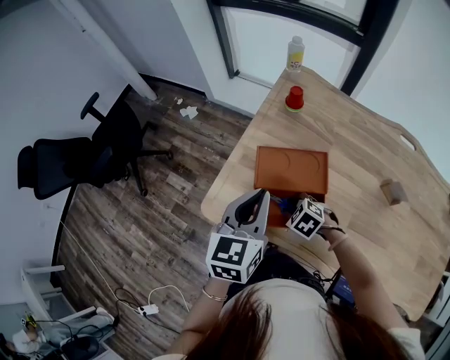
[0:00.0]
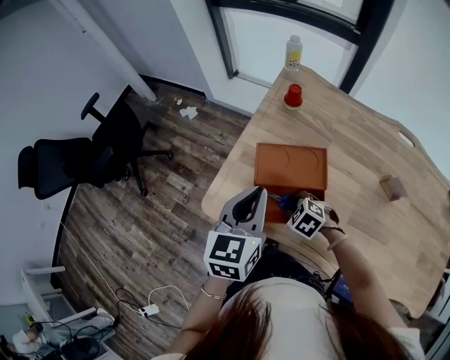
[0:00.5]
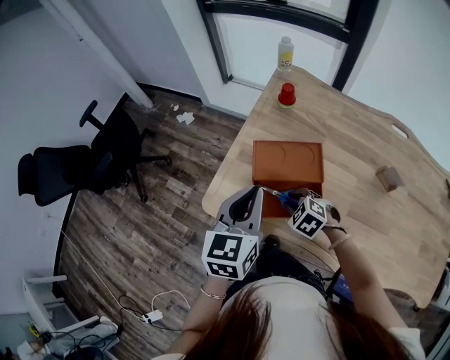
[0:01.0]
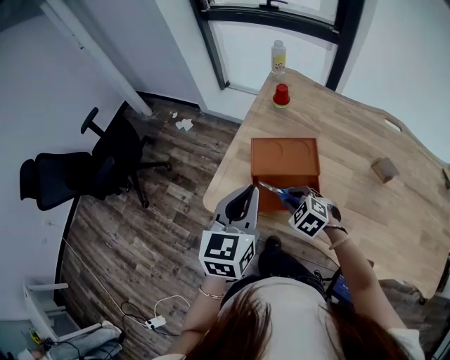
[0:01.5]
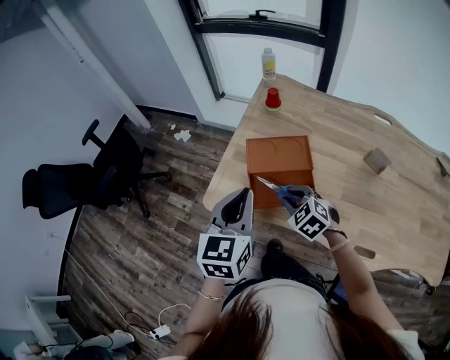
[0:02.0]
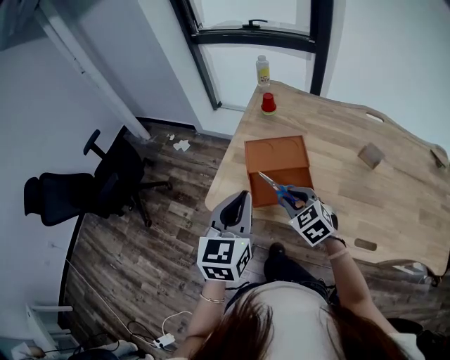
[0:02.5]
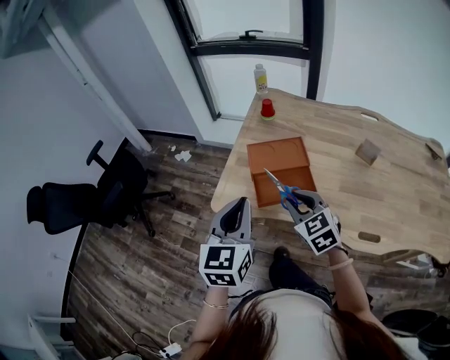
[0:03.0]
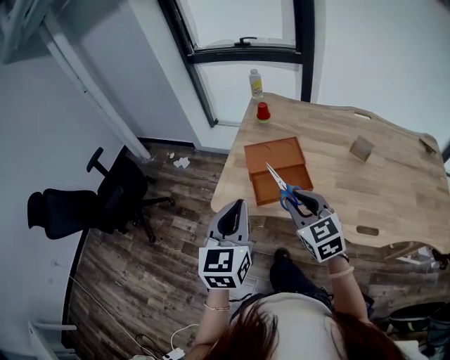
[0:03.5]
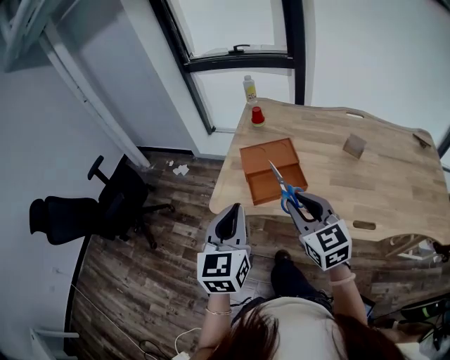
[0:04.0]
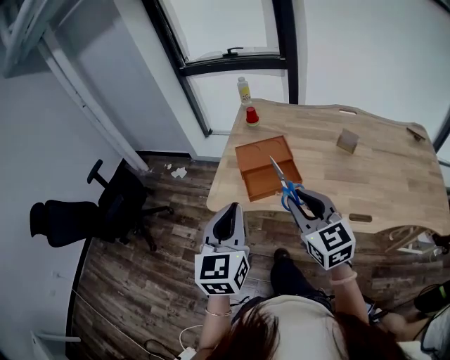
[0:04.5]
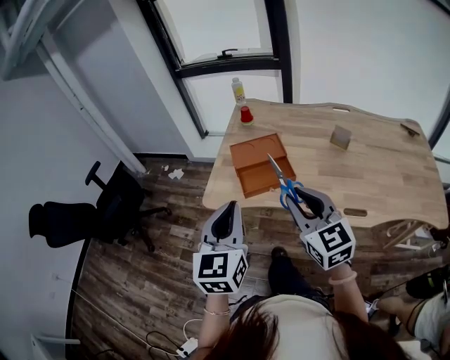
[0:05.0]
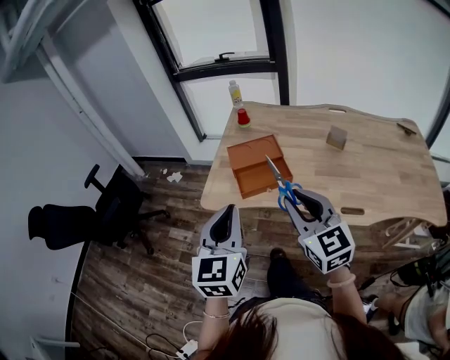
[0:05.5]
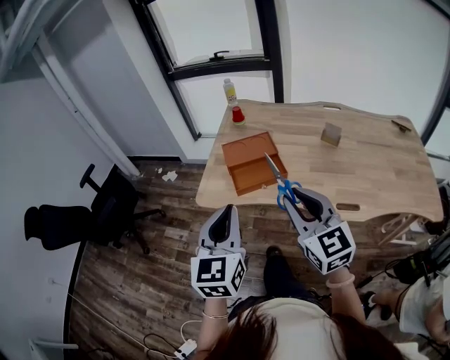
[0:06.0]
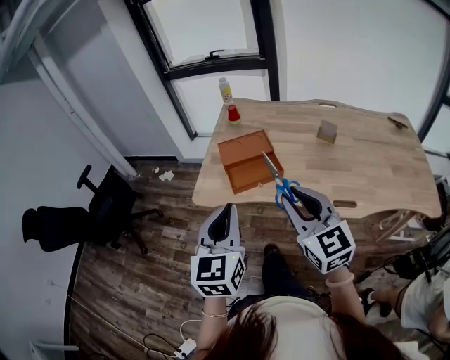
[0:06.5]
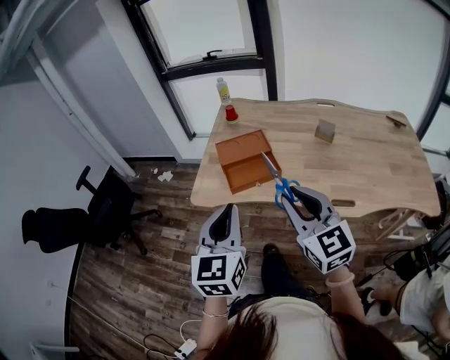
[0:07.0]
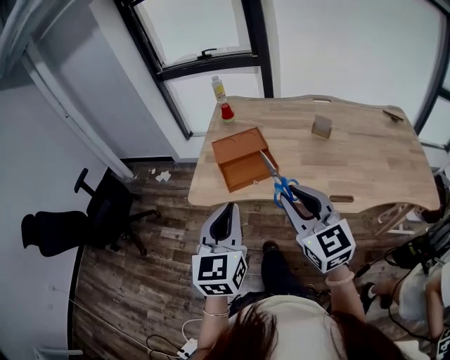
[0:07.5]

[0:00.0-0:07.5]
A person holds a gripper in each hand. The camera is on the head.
0:00.0 to 0:02.0: The left gripper moves backward, about 10 cm. Meanwhile the right gripper moves upward and backward, about 10 cm, and turns by roughly 20 degrees.
0:02.0 to 0:04.0: The left gripper is displaced backward by approximately 15 cm; the right gripper is displaced upward and backward by roughly 25 cm, and tips its fingers upward by roughly 40 degrees.
0:04.0 to 0:05.5: Both grippers move backward, roughly 10 cm.
0:05.5 to 0:07.5: There are only small adjustments of the grippers.

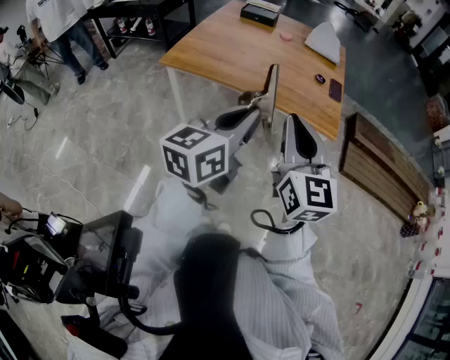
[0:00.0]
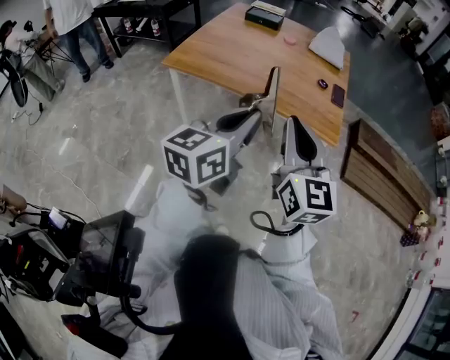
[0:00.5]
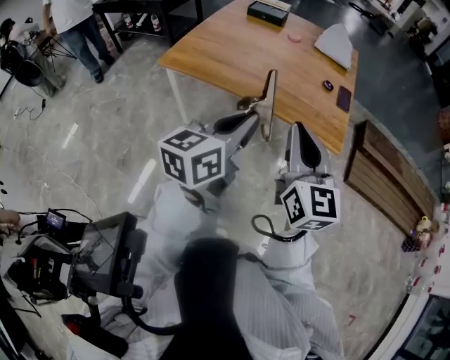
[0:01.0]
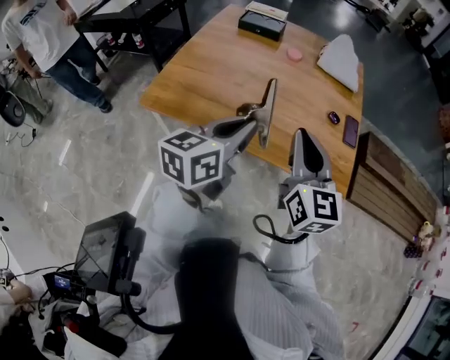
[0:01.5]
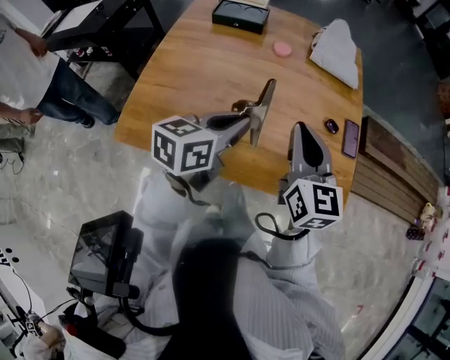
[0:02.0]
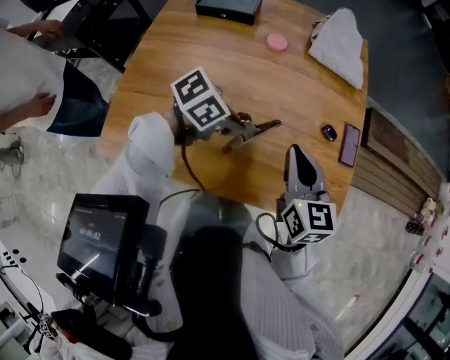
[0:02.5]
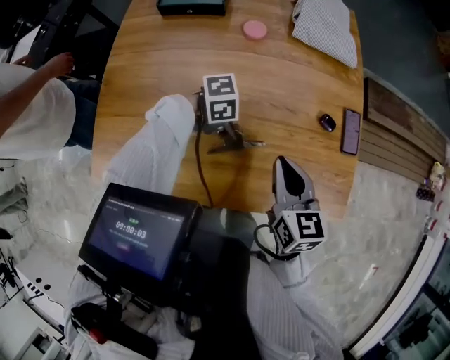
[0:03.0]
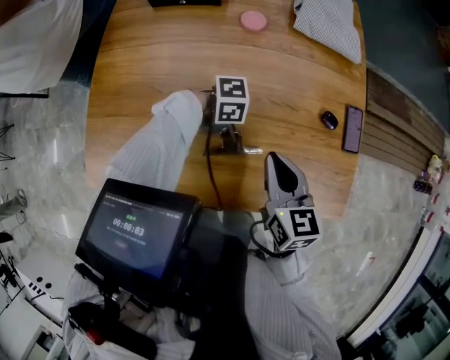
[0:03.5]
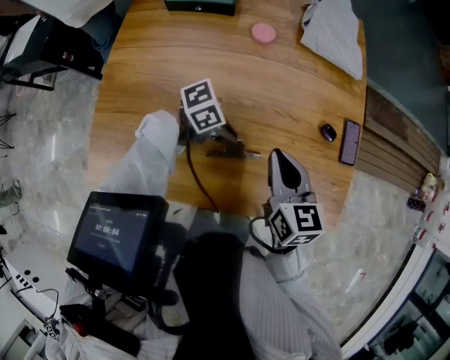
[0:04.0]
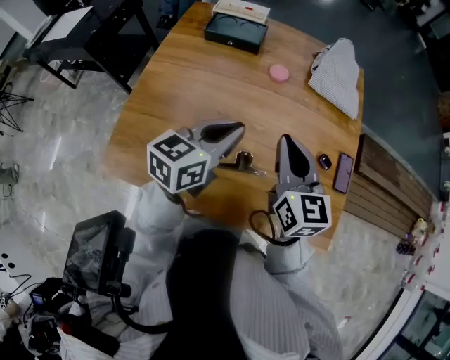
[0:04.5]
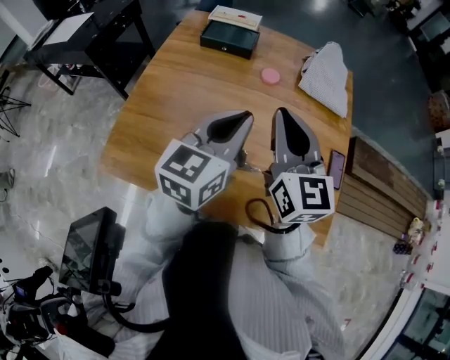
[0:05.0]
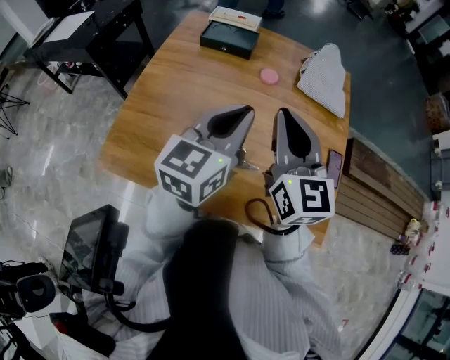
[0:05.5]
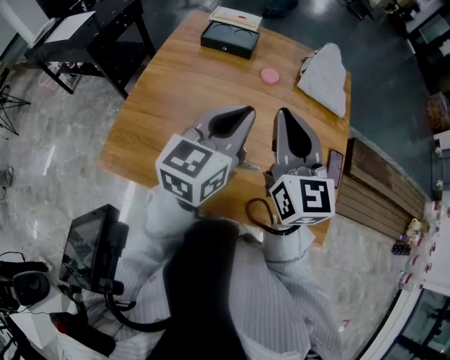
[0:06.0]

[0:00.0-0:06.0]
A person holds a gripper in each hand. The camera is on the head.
0:00.0 to 0:02.0: The two grippers travel together, forward, some 50 cm. The left gripper changes its angle by roughly 30 degrees.
0:02.0 to 0:04.0: The left gripper heads downward, covering about 20 cm, and turns by roughly 70 degrees; the right gripper goes roughly 15 cm downward, and swivels about 20 degrees.
0:04.0 to 0:06.0: The left gripper shifts roughly 30 cm upward, and points its fingers about 30 degrees further upward. Meanwhile the right gripper shifts roughly 20 cm upward, and changes its angle by about 30 degrees.

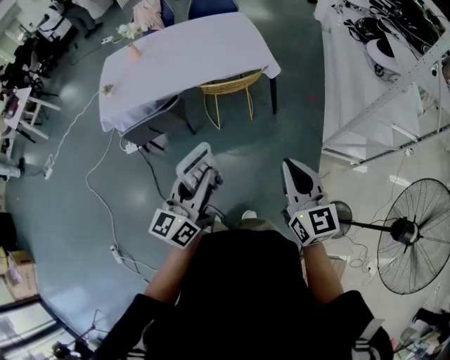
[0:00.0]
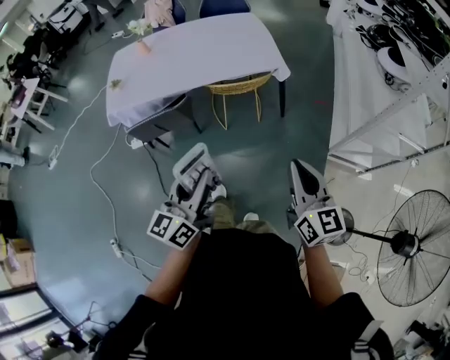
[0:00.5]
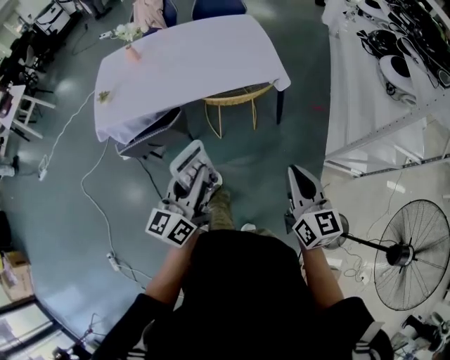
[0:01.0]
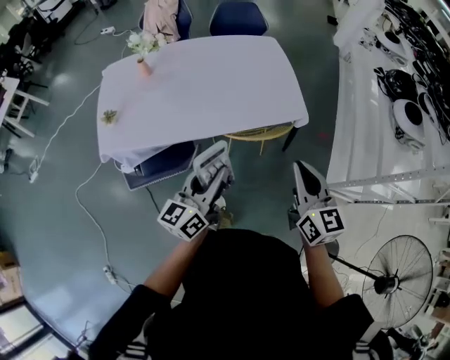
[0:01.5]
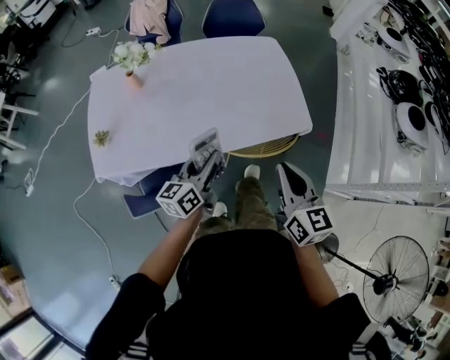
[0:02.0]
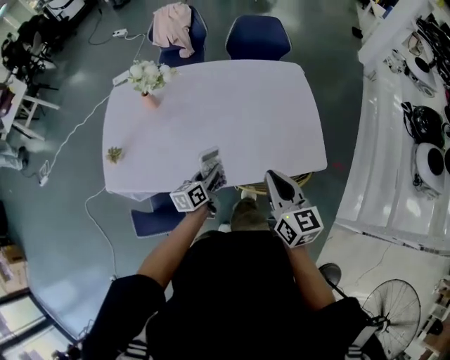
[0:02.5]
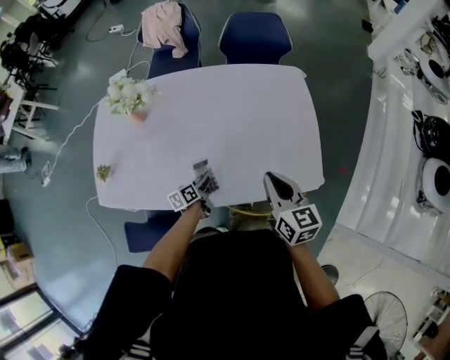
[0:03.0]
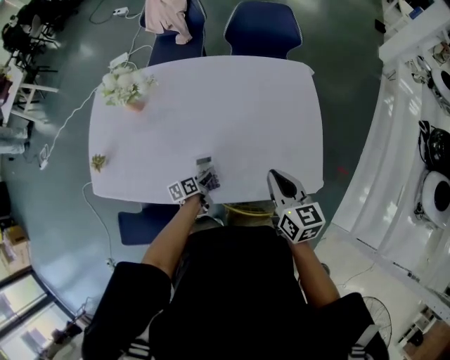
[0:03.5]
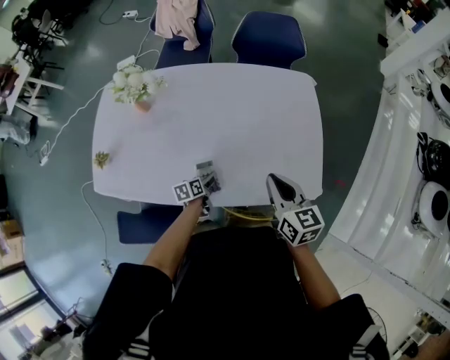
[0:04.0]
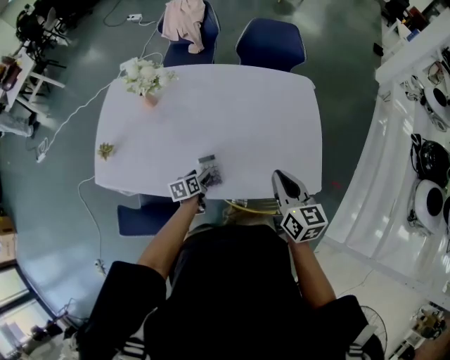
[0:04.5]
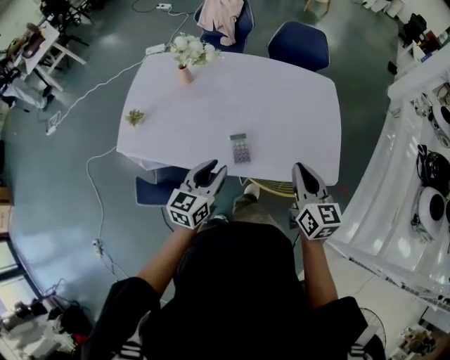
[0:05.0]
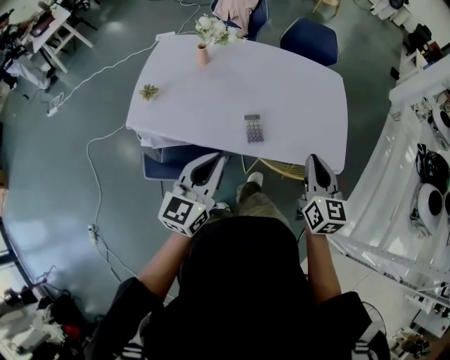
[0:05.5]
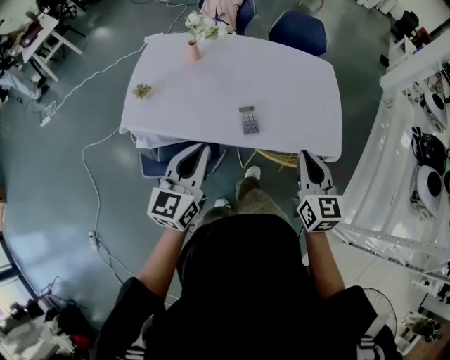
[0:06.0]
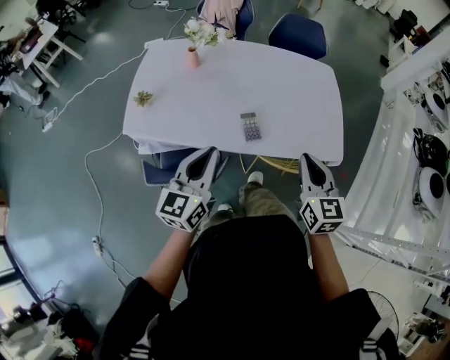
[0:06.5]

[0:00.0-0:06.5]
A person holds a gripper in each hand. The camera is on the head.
0:00.0 to 0:02.0: Both grippers are carried forward and to the left, about 50 cm.
0:02.0 to 0:04.5: The left gripper shifts approximately 30 cm downward and forward, tilts its fingers some 40 degrees downward, and opens up; the right gripper shifts roughly 25 cm forward and downward.
0:04.5 to 0:06.5: The right gripper shifts roughly 20 cm backward, to the left and upward, and changes its angle by approximately 20 degrees; the left gripper goes some 40 cm upward and backward, tips its fingers upward by some 40 degrees, and closes.

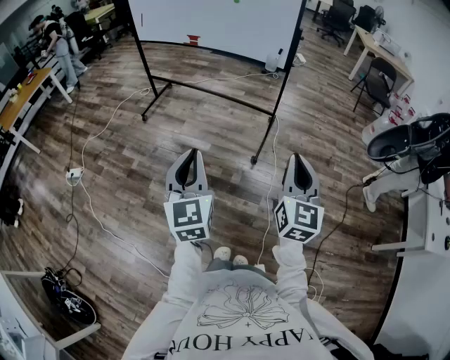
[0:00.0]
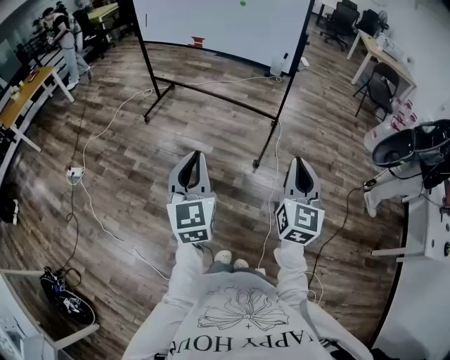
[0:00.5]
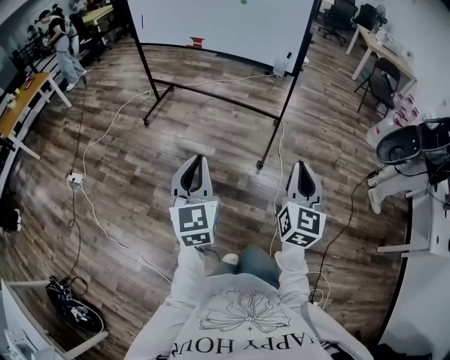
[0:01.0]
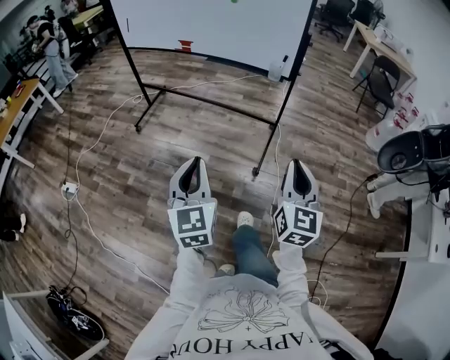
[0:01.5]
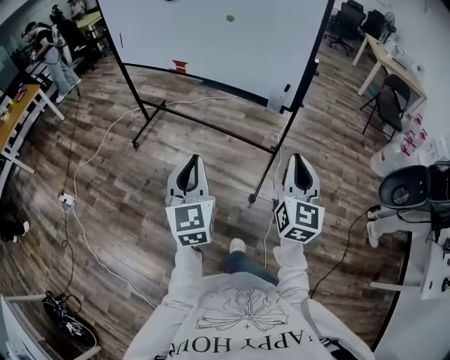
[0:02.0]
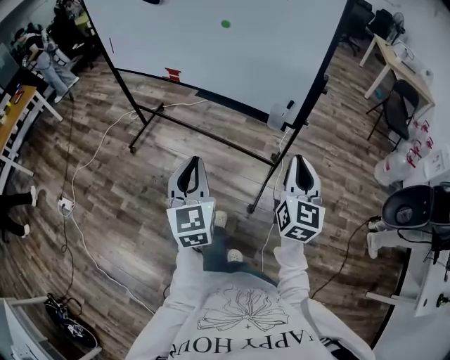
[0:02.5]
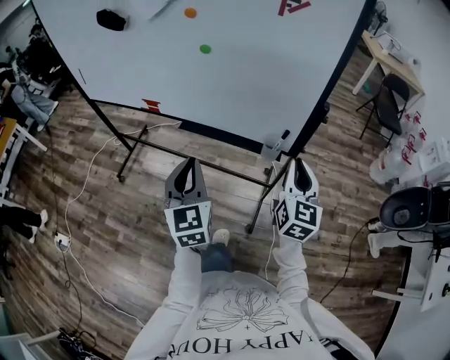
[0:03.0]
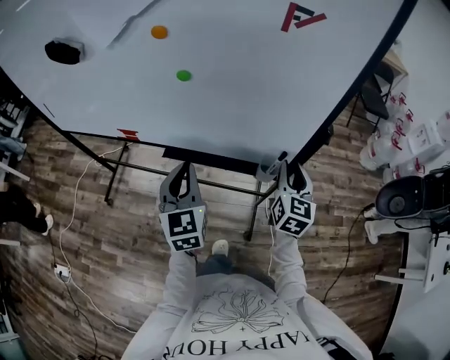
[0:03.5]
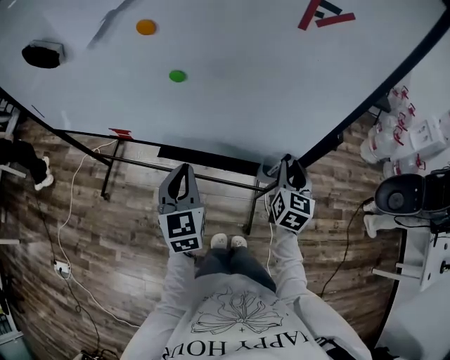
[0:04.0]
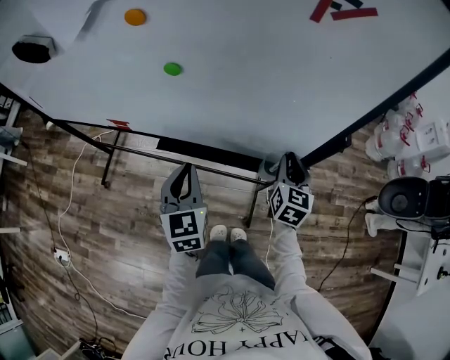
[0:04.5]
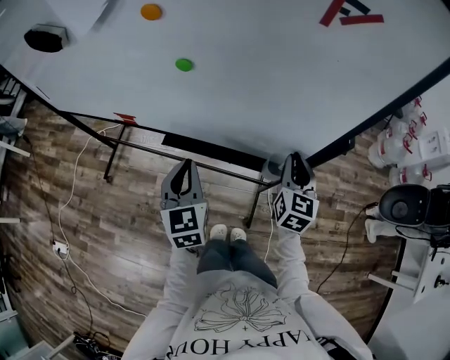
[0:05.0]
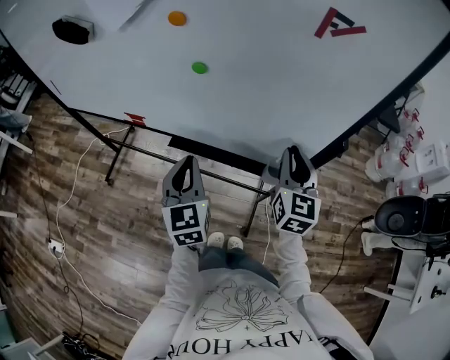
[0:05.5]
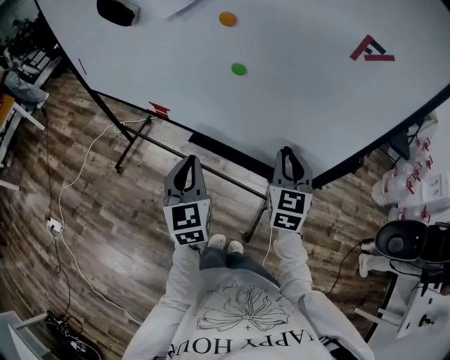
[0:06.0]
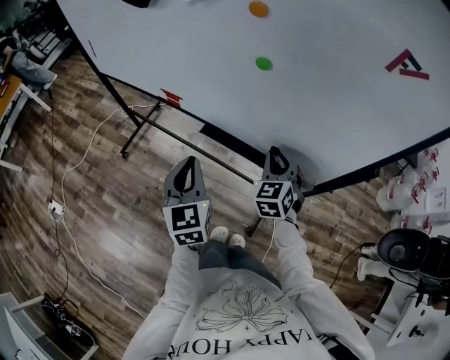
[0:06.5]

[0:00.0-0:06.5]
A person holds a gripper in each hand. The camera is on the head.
0:00.0 to 0:02.0: Both grippers move forward, approximately 35 cm.
0:02.0 to 0:04.5: The pair of grippers is taken forward, about 50 cm. The right gripper changes its angle by approximately 30 degrees.
0:04.5 to 0:06.5: The left gripper is displaced to the left and backward by some 10 cm, while the right gripper shifts about 20 cm to the left, and rotates around the line of its fingers by some 40 degrees, counterclockwise from behind.
